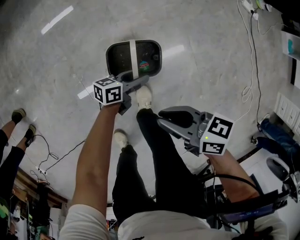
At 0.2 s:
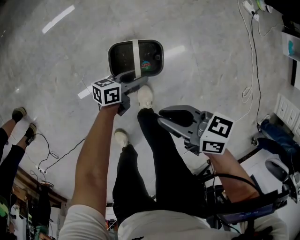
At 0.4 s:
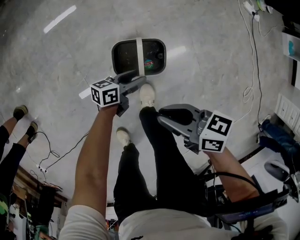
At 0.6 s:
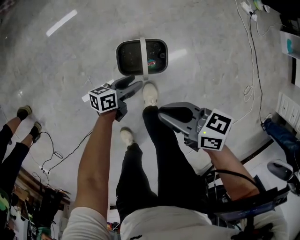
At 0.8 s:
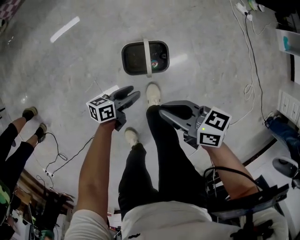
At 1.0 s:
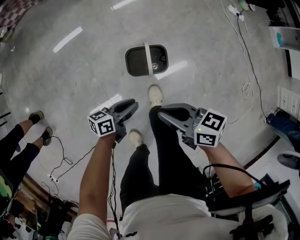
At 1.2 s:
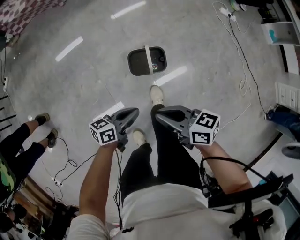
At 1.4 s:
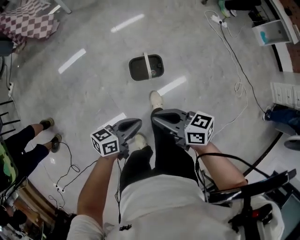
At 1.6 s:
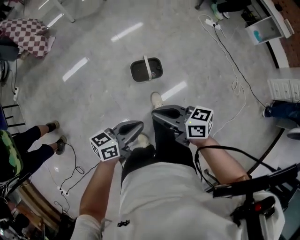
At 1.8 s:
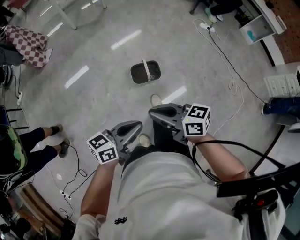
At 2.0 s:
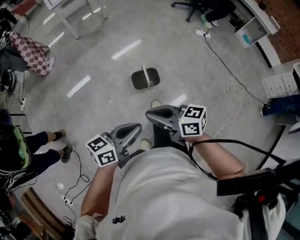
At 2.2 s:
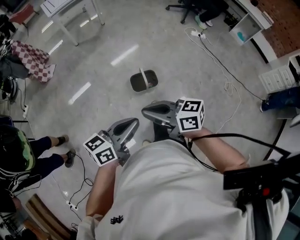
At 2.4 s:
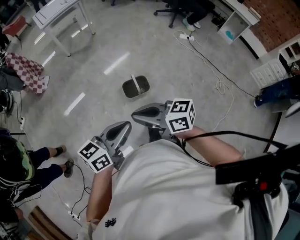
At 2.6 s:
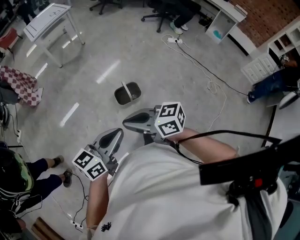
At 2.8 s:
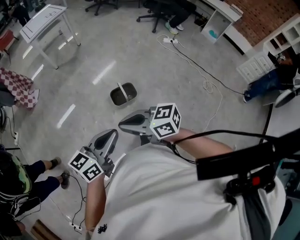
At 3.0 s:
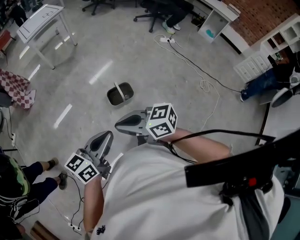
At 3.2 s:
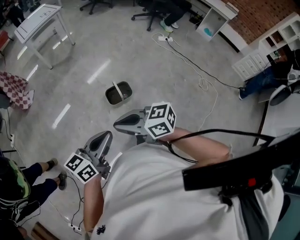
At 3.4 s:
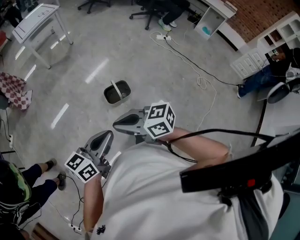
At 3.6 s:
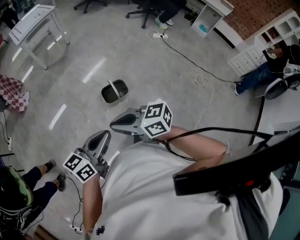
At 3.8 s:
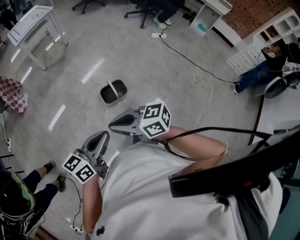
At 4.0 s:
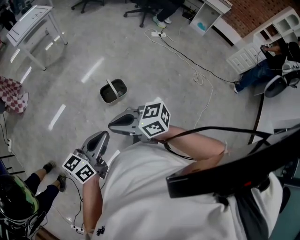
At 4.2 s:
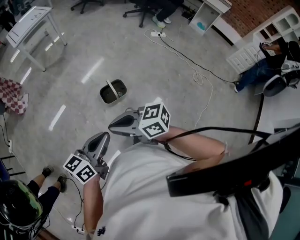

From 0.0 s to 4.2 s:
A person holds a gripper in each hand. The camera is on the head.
From 0.0 s to 1.4 s: The left gripper shifts roughly 35 cm upward, and closes up. The right gripper goes about 20 cm upward.
From 1.4 s to 2.8 s: Both grippers travel together upward, about 25 cm. The left gripper swivels roughly 20 degrees.
From 2.8 s to 4.2 s: The grippers stay close to where they were, moving slightly.

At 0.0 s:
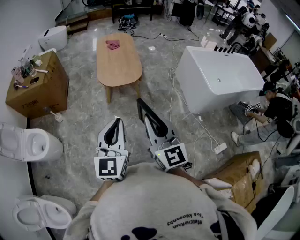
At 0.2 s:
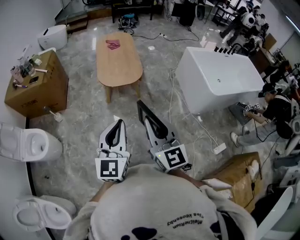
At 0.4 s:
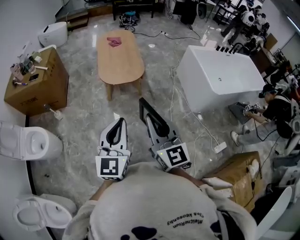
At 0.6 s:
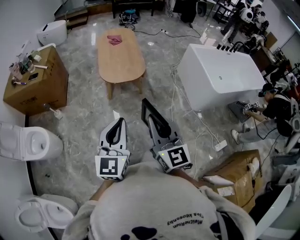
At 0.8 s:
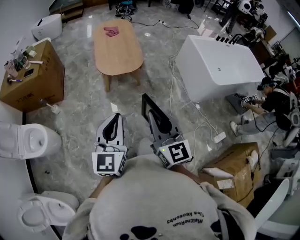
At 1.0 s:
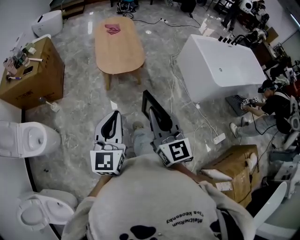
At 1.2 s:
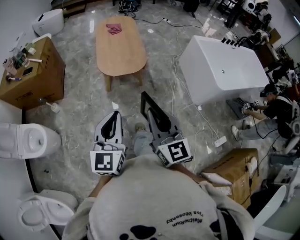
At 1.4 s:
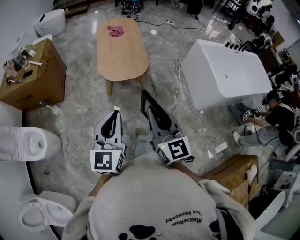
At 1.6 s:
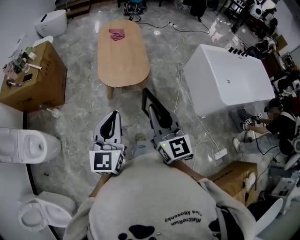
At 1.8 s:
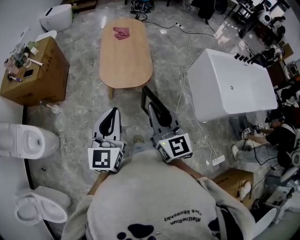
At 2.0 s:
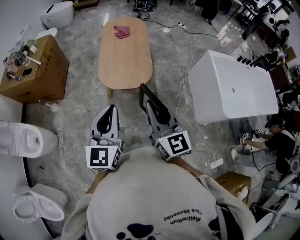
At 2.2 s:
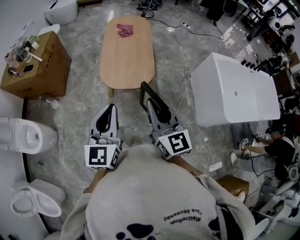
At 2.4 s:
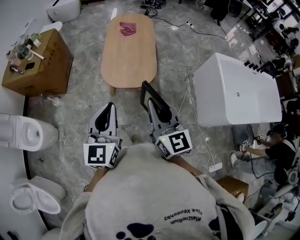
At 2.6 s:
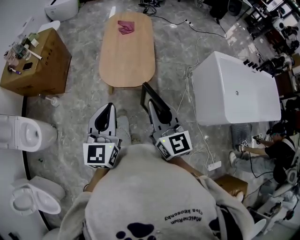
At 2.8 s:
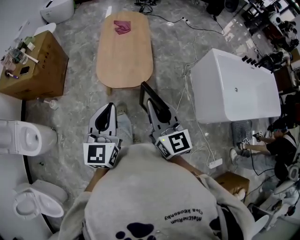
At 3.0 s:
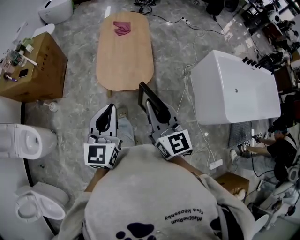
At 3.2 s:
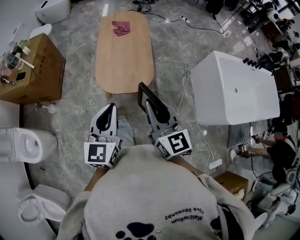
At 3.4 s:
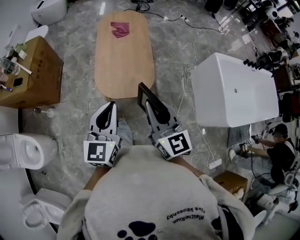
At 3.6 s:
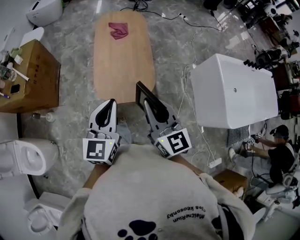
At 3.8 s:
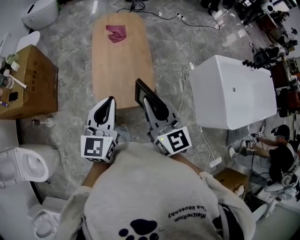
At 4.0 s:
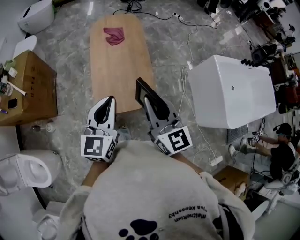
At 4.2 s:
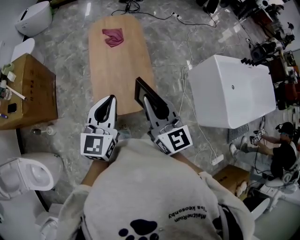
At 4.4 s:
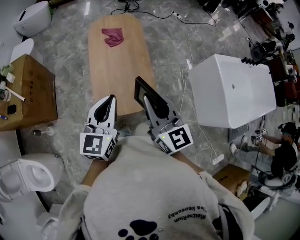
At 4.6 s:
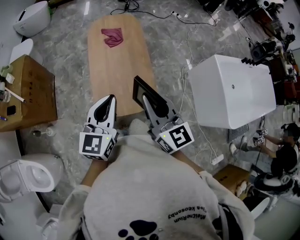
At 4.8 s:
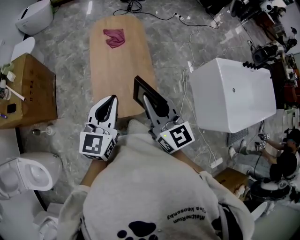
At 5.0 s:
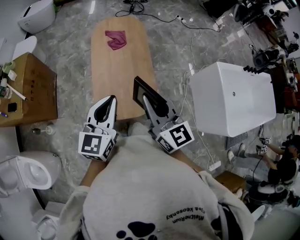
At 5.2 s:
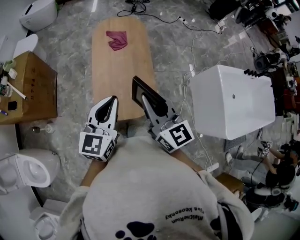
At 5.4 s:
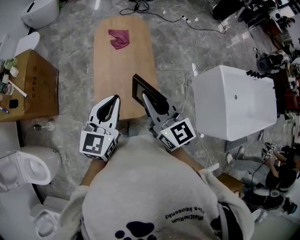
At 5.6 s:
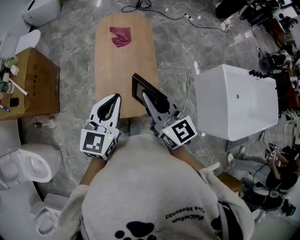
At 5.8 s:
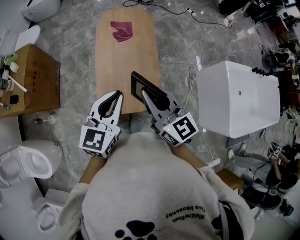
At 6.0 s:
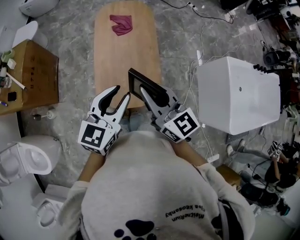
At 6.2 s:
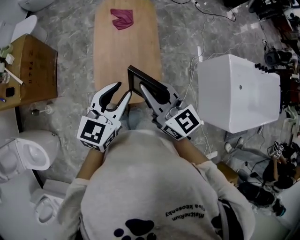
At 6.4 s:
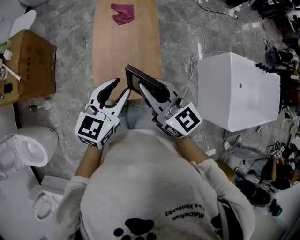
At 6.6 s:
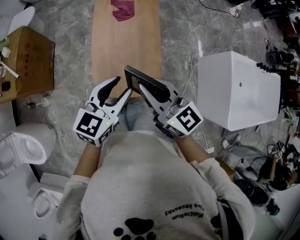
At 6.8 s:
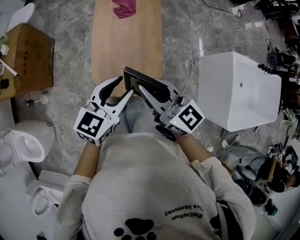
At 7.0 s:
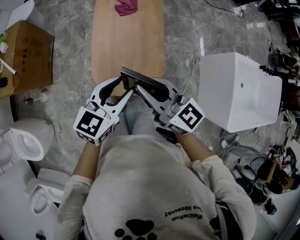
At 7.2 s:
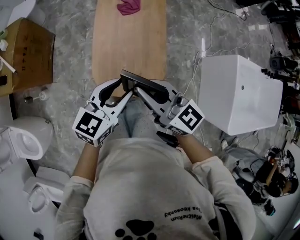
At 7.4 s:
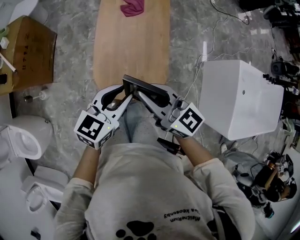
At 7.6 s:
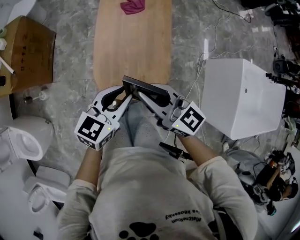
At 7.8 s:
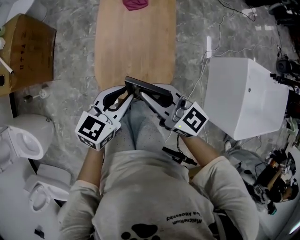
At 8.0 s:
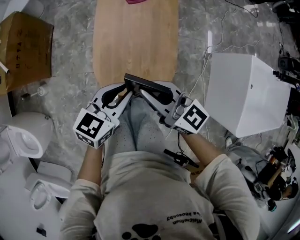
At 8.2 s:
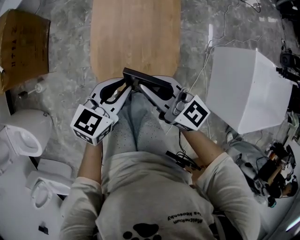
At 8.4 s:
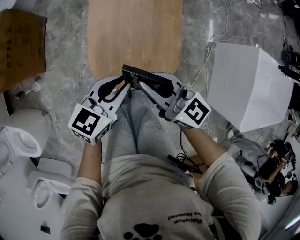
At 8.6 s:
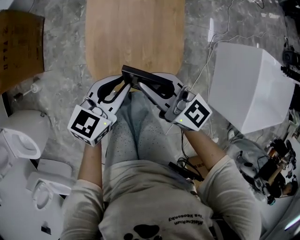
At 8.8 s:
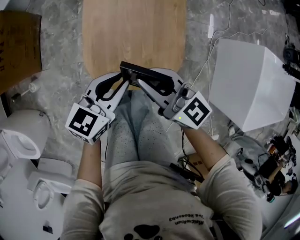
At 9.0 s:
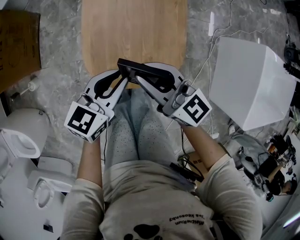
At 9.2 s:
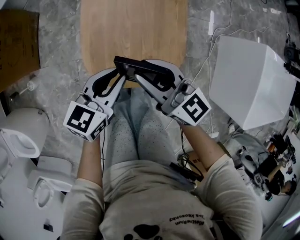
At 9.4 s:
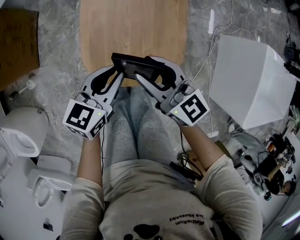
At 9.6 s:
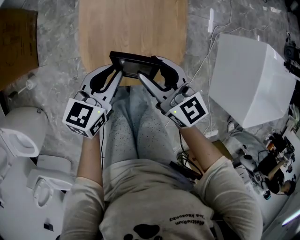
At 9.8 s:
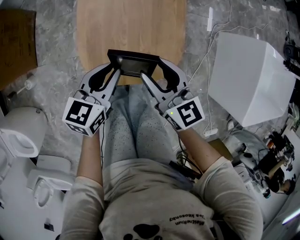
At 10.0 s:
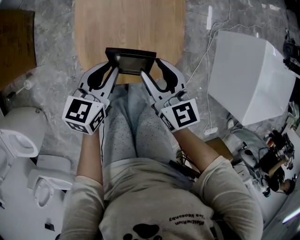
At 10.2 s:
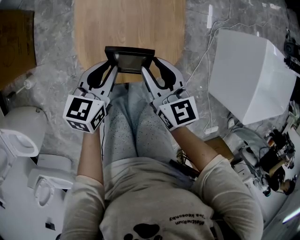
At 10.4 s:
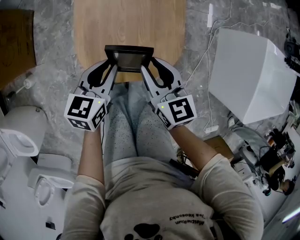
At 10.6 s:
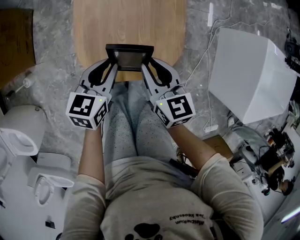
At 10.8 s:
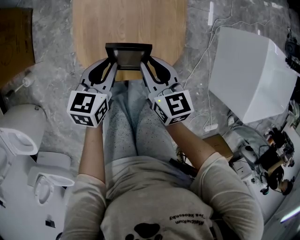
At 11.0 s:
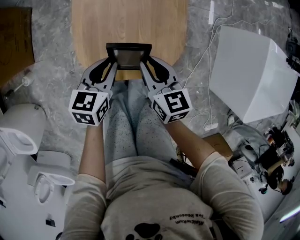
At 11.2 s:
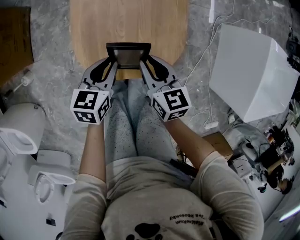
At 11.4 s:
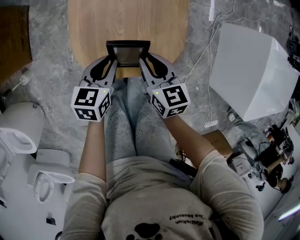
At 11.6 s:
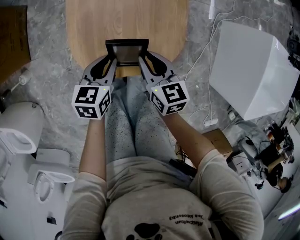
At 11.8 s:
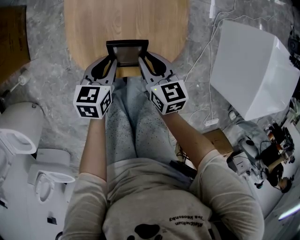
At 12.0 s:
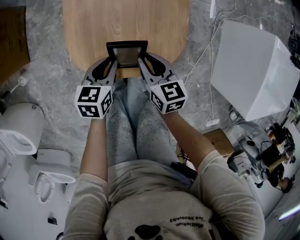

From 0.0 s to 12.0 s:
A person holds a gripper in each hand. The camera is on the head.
From 0.0 s to 1.6 s: Both grippers move forward, about 20 cm.
From 1.6 s to 3.0 s: Both grippers travel together forward, approximately 15 cm.
From 3.0 s to 4.4 s: The two grippers go some 25 cm forward.
From 4.4 s to 6.0 s: The left gripper changes place by approximately 5 cm, and opens. Meanwhile the right gripper moves forward, some 5 cm.
From 6.0 s to 7.6 s: Both grippers travel together downward, roughly 10 cm. The right gripper turns by some 20 degrees.
From 7.6 s to 9.0 s: Both grippers move downward, about 15 cm.
From 9.0 s to 10.4 s: Both grippers move downward, about 5 cm. The right gripper swivels some 30 degrees.
From 10.4 s to 12.0 s: The grippers both shift downward by some 10 cm.

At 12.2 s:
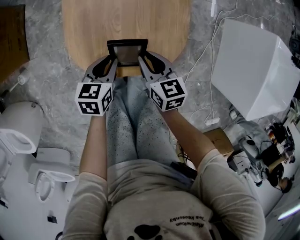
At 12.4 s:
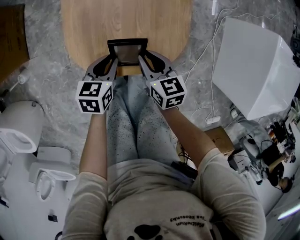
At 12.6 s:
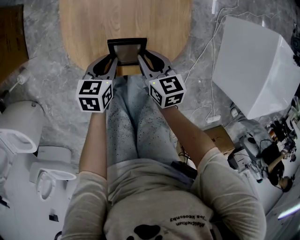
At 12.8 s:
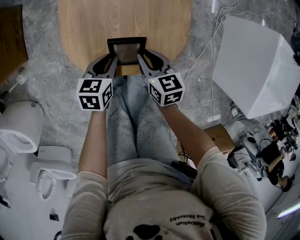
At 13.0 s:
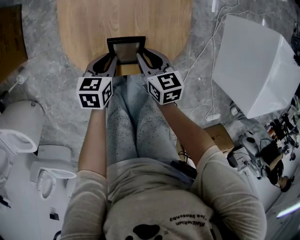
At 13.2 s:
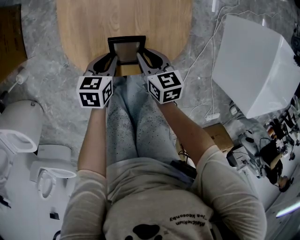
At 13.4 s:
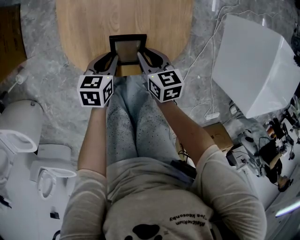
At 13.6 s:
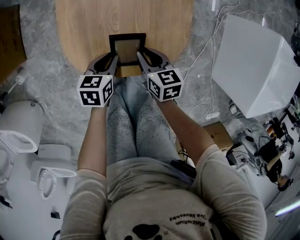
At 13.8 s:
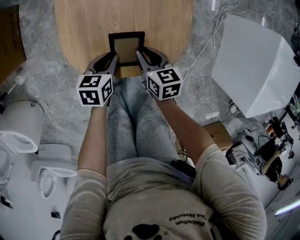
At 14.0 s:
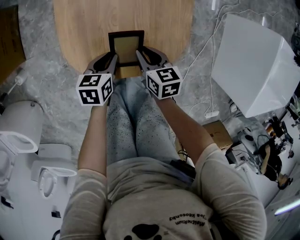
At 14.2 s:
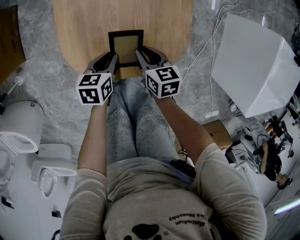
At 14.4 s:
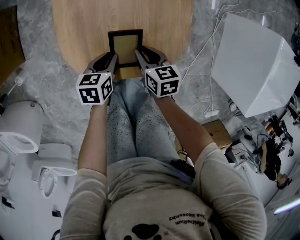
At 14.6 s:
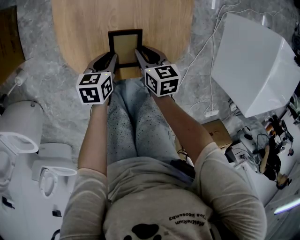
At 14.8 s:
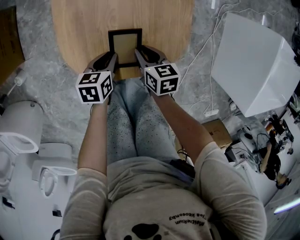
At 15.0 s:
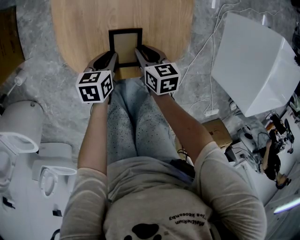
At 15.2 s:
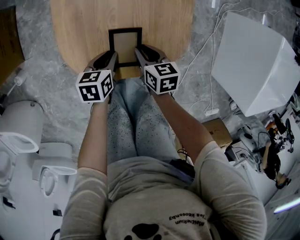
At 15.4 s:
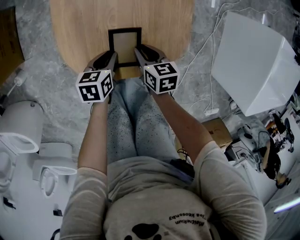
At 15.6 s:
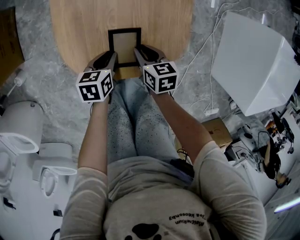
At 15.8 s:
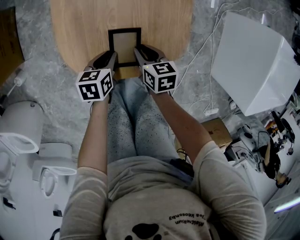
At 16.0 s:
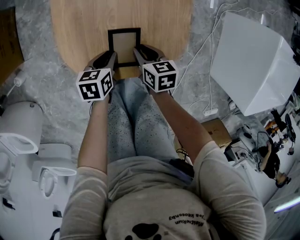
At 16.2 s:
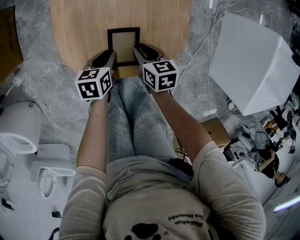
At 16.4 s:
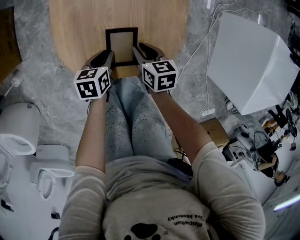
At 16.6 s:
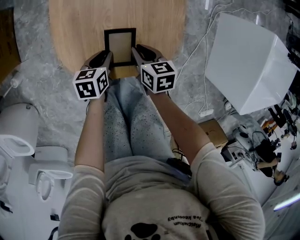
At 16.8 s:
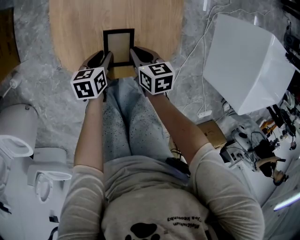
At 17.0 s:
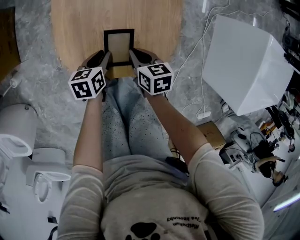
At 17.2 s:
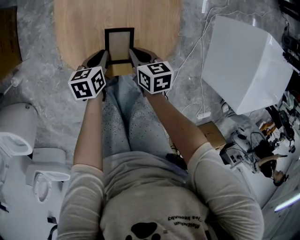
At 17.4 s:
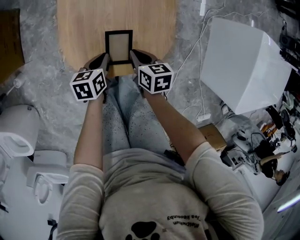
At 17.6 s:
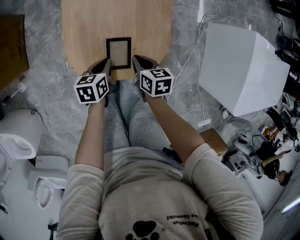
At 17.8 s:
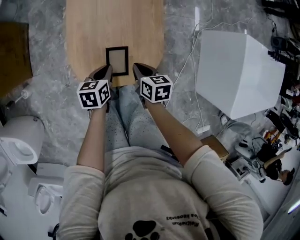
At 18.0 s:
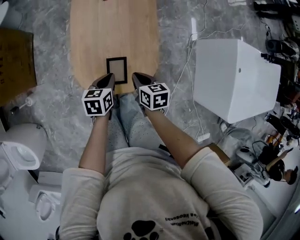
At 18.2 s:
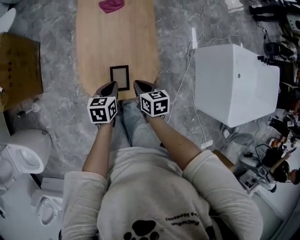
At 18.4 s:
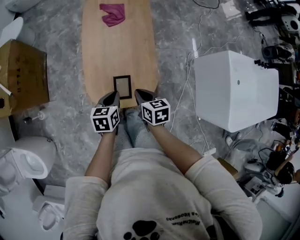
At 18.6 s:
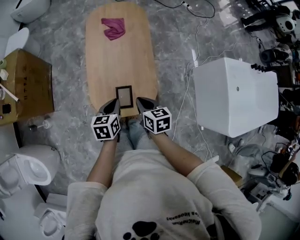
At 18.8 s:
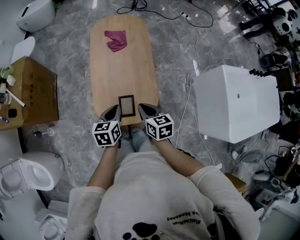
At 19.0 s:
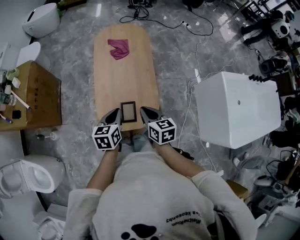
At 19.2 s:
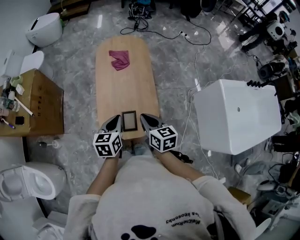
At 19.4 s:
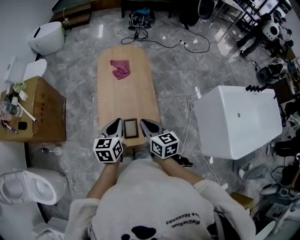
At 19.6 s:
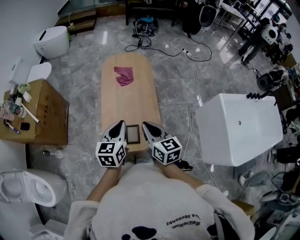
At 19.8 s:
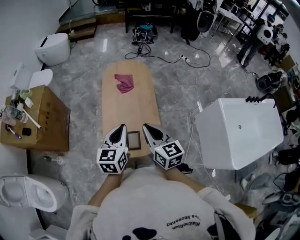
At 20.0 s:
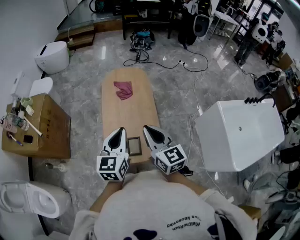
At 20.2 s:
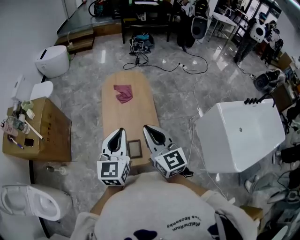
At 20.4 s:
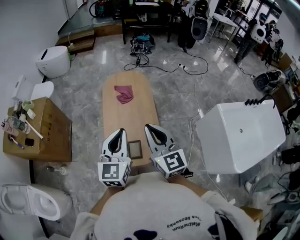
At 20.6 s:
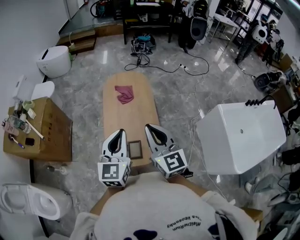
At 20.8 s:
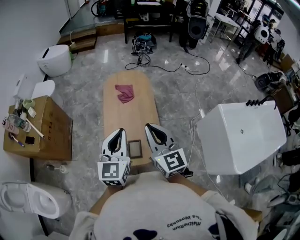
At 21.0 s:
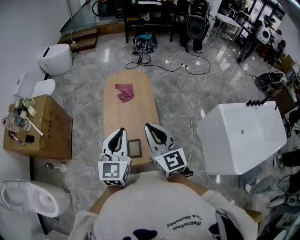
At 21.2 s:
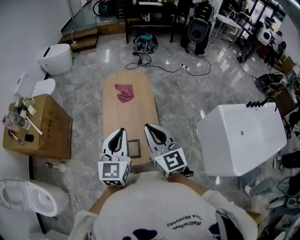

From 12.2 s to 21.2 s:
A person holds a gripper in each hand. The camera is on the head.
From 12.2 s to 13.8 s: Both grippers move downward, about 5 cm.
From 13.8 s to 16.6 s: The grippers move only a little.
From 16.6 s to 18.2 s: Both grippers move upward, about 20 cm.
From 18.2 s to 19.8 s: Both grippers move upward, about 30 cm. The right gripper points its fingers about 30 degrees further upward. The left gripper swivels about 30 degrees.
From 19.8 s to 21.2 s: The two grippers go some 10 cm upward.
